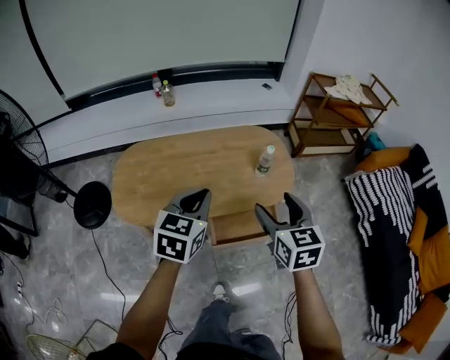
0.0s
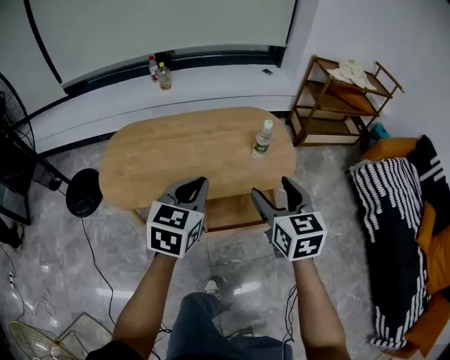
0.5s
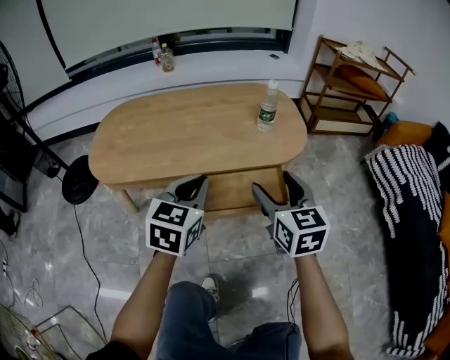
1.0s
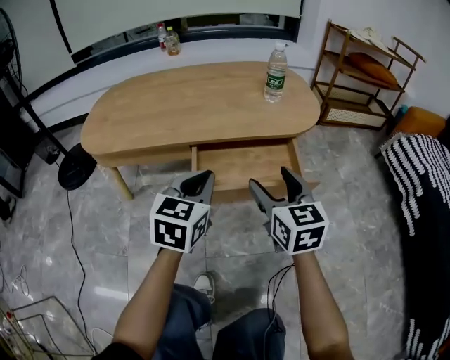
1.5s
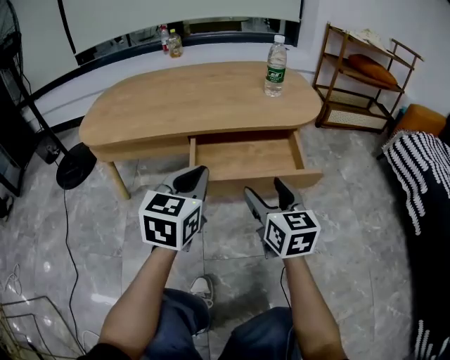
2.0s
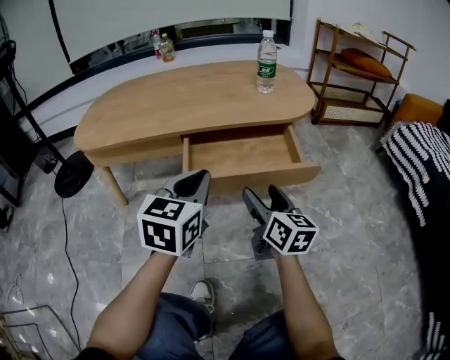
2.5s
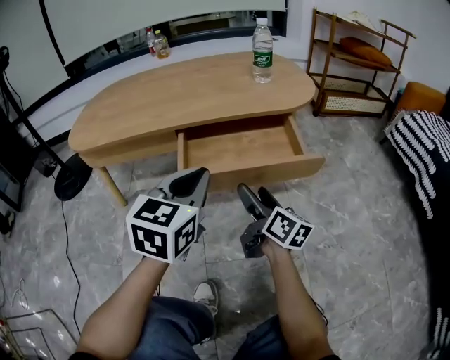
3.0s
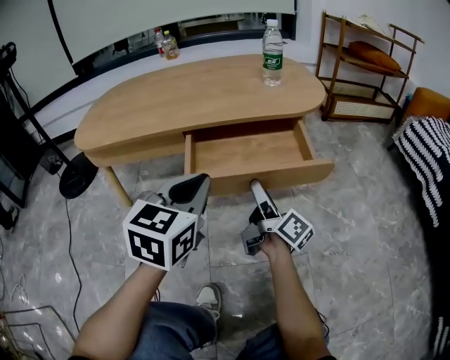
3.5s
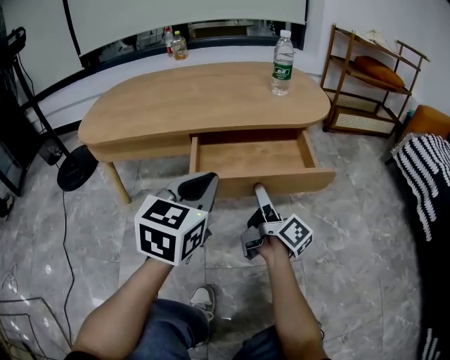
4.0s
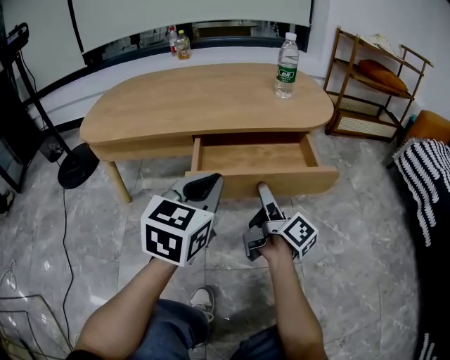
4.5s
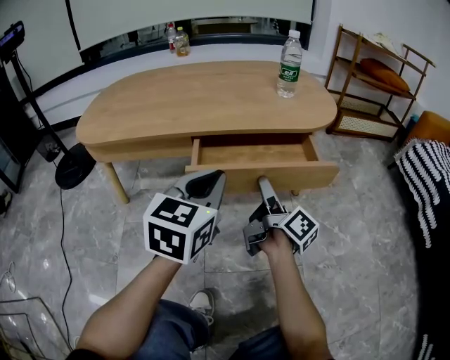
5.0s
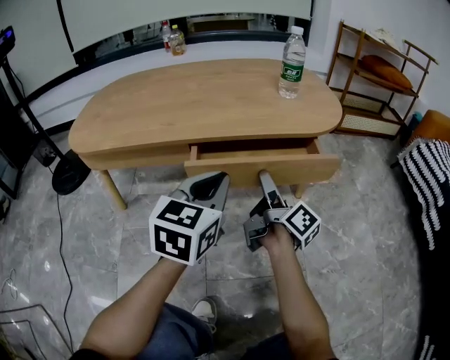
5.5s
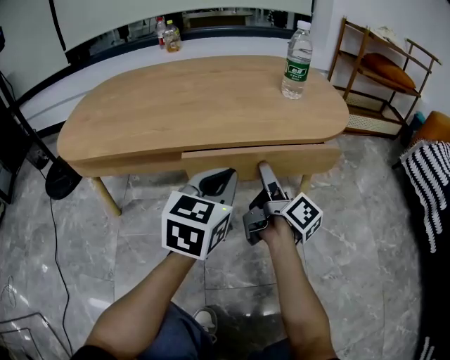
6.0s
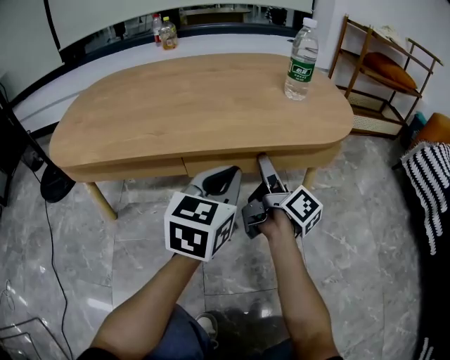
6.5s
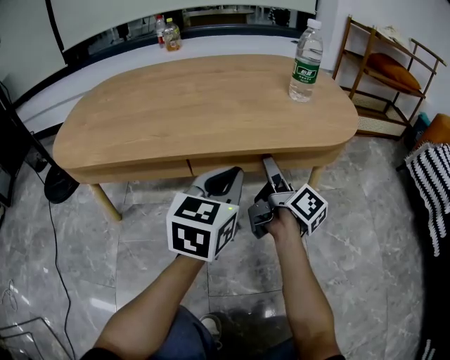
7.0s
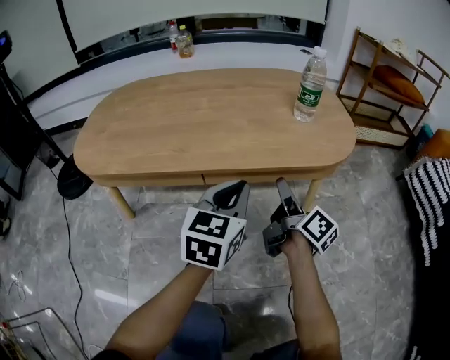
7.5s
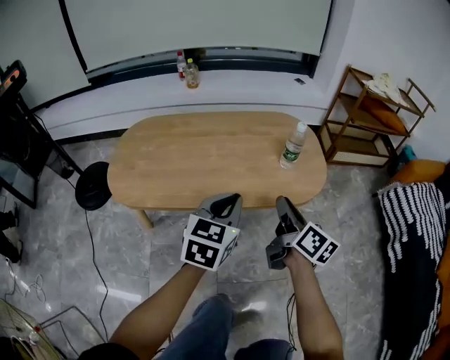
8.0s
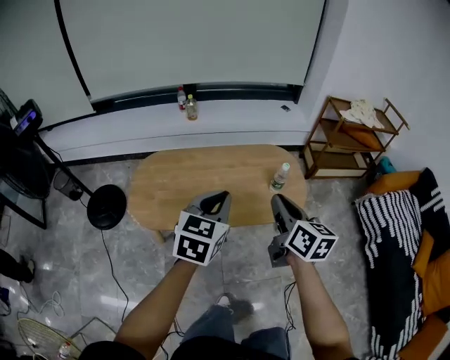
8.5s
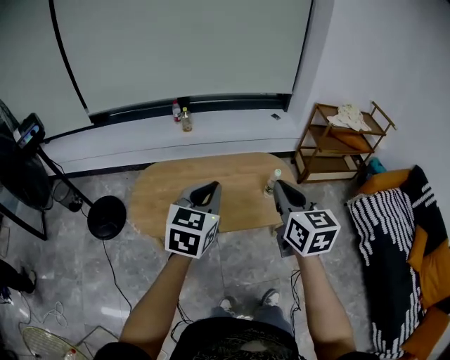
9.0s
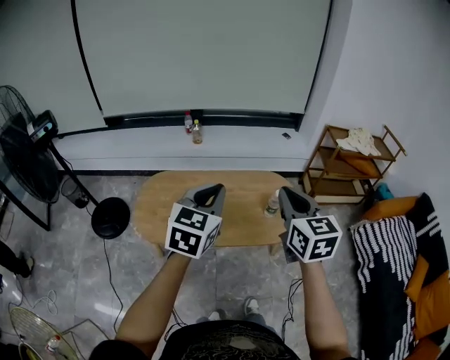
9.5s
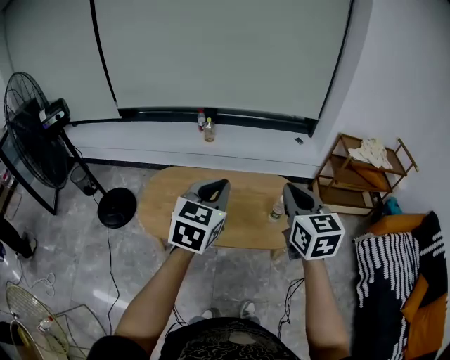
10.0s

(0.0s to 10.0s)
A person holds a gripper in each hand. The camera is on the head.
0.0s - 2.0s: The grippers both shift downward by approximately 40 cm.
2.0s - 4.0s: The right gripper shifts roughly 10 cm downward, and twists some 60 degrees clockwise, seen from behind.
4.0s - 6.0s: Both grippers move forward, approximately 15 cm.
6.0s - 8.0s: Both grippers travel together upward, roughly 25 cm. The right gripper swivels some 30 degrees, and closes its fingers.
8.0s - 10.0s: The two grippers go approximately 40 cm upward. The right gripper rotates around the line of its fingers by approximately 50 degrees, counterclockwise from behind.

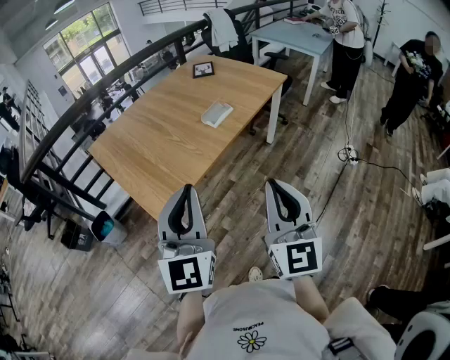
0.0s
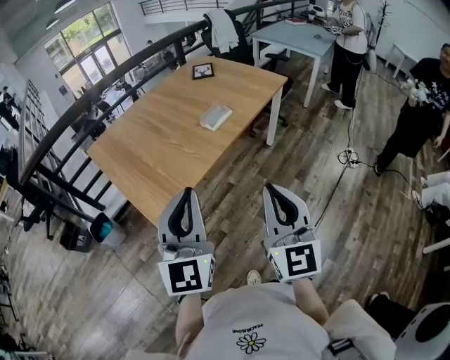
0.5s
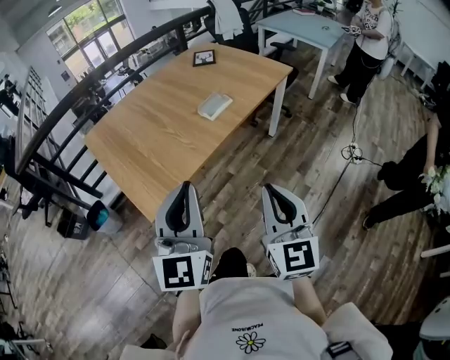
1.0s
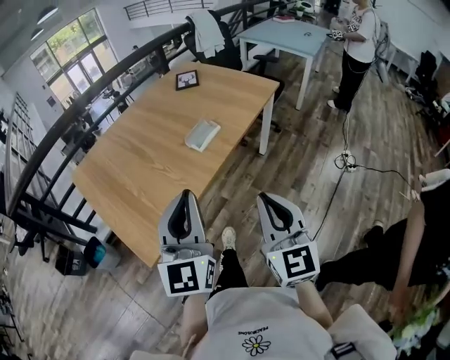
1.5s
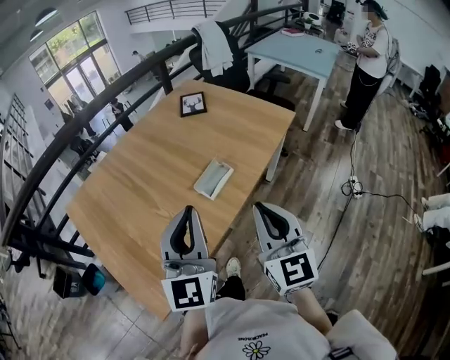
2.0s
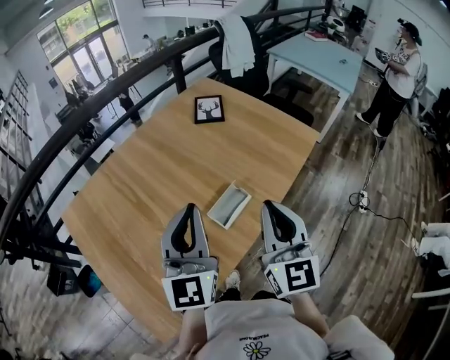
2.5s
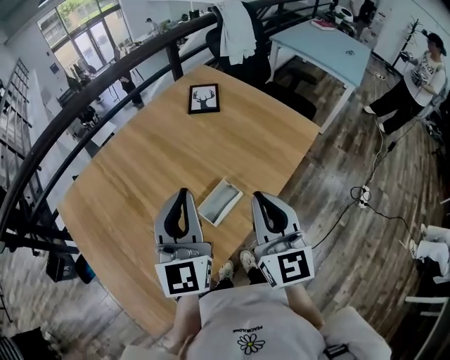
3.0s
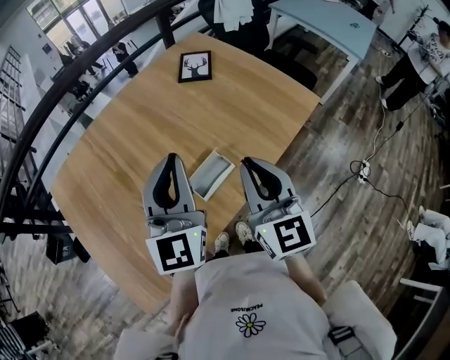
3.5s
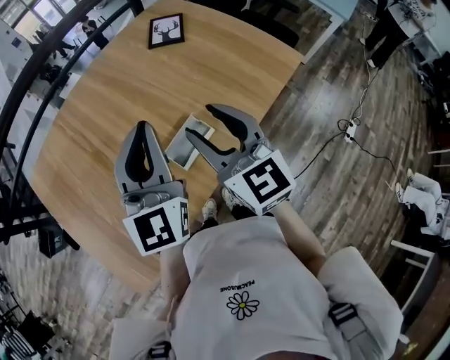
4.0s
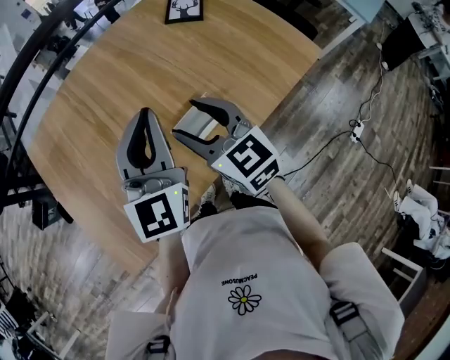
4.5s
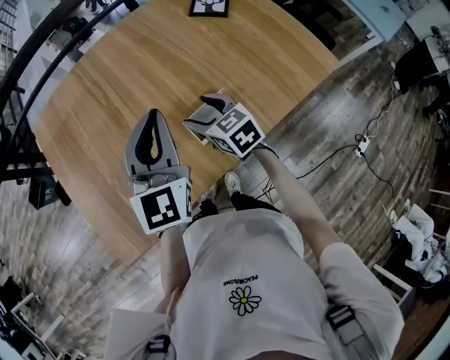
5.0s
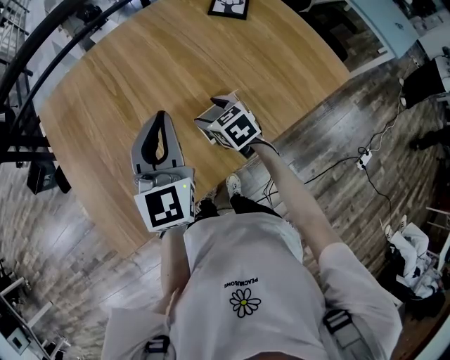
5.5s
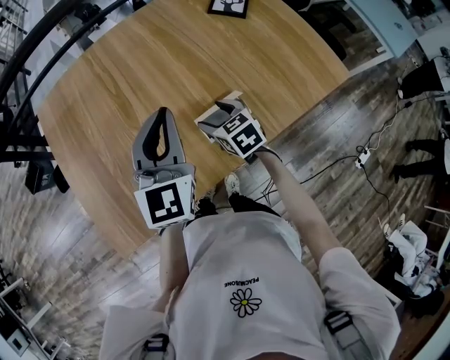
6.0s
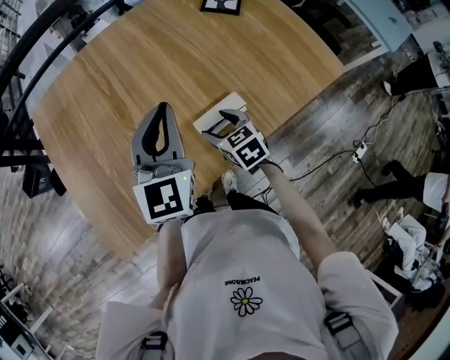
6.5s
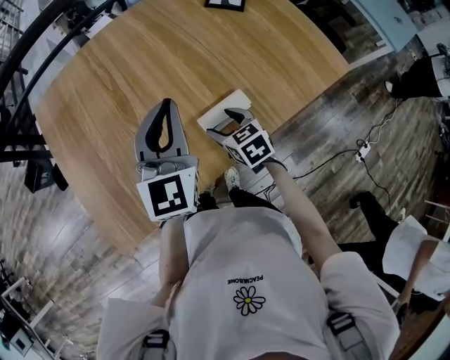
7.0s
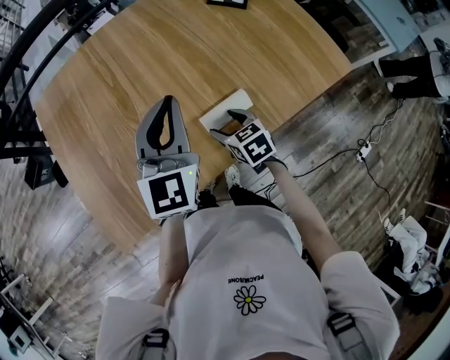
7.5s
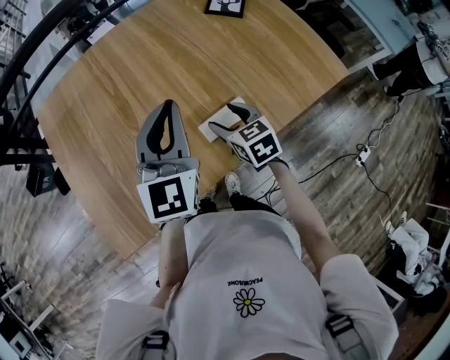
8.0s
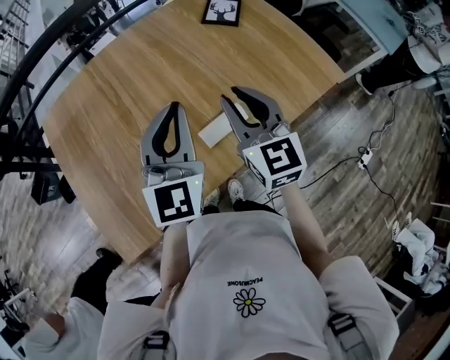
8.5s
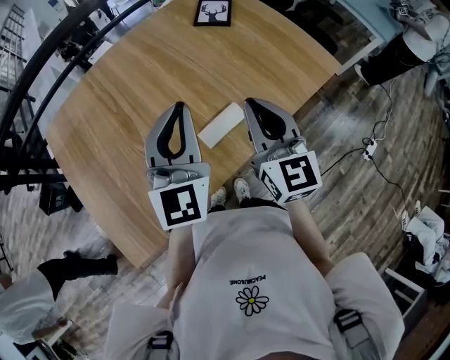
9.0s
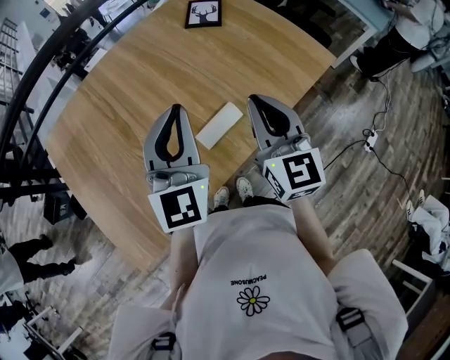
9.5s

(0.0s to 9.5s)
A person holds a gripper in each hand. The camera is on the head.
0.0s - 2.0s: Both grippers move forward, roughly 30 cm.
2.0s - 4.0s: The two grippers go about 20 cm forward. The right gripper swivels about 20 degrees, and opens.
4.0s - 5.5s: The left gripper shifts approximately 10 cm to the left and downward; the right gripper goes some 25 cm downward, and points its fingers about 40 degrees further downward.
5.5s - 7.5s: The right gripper moves backward, about 5 cm.
7.5s - 9.5s: The left gripper shifts approximately 5 cm upward and to the right. Meanwhile the right gripper moves upward, about 25 cm, tips its fingers upward by about 40 degrees, and closes its fingers.

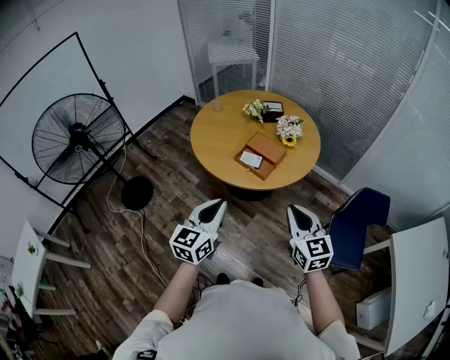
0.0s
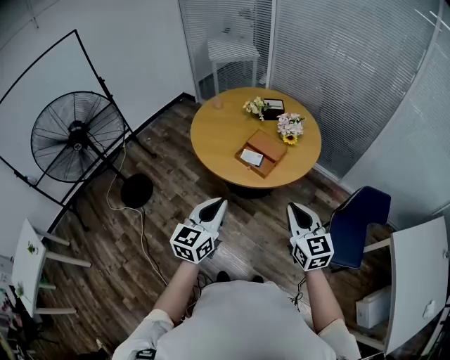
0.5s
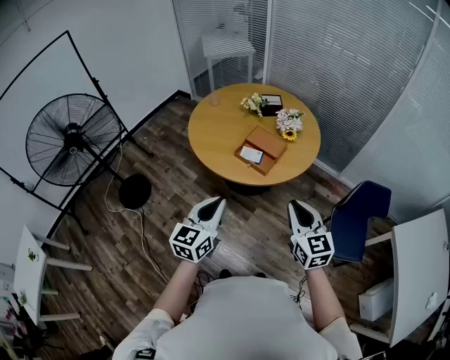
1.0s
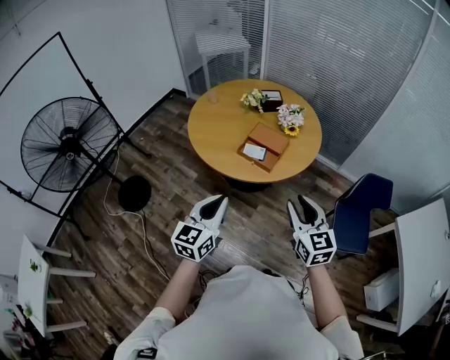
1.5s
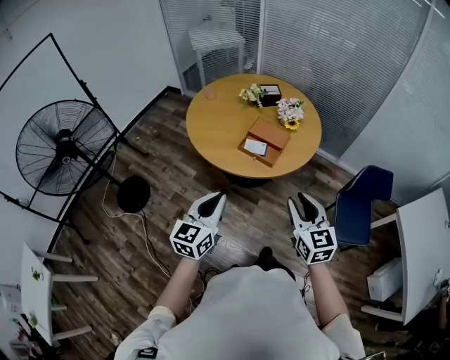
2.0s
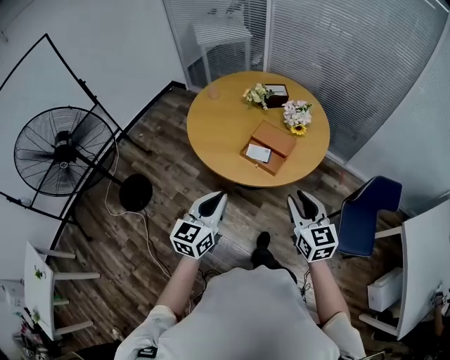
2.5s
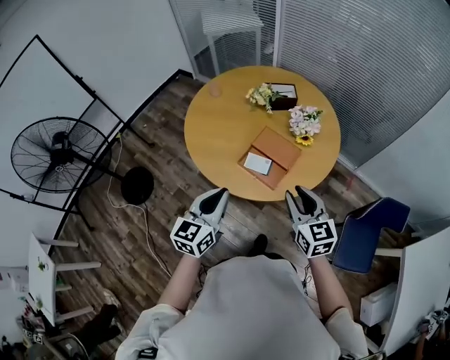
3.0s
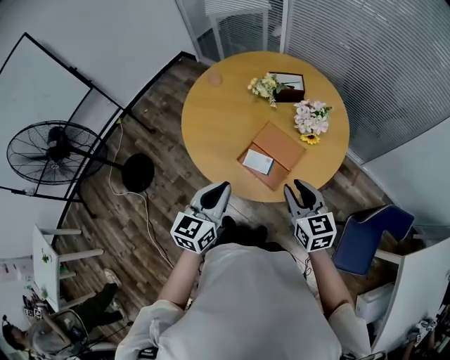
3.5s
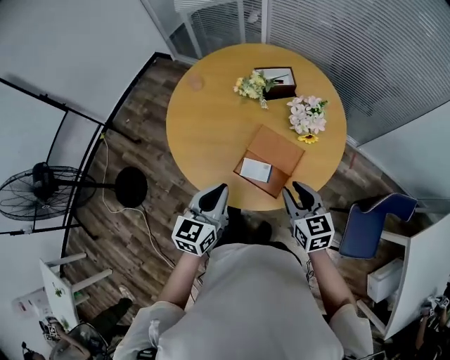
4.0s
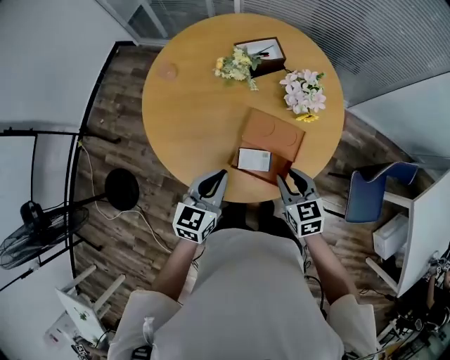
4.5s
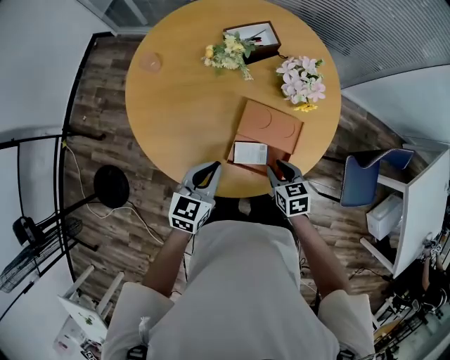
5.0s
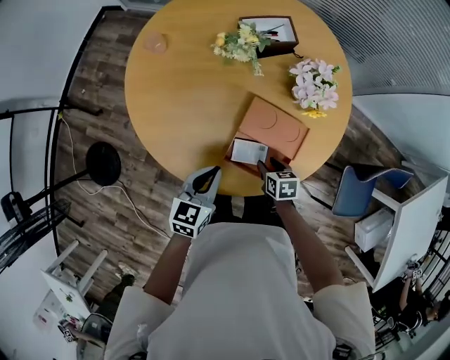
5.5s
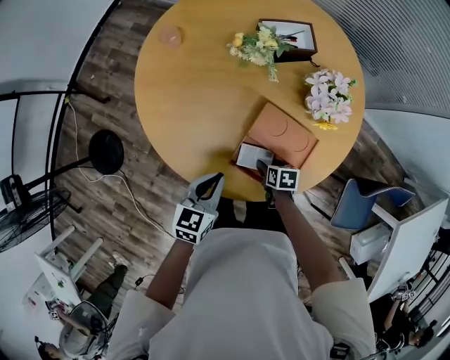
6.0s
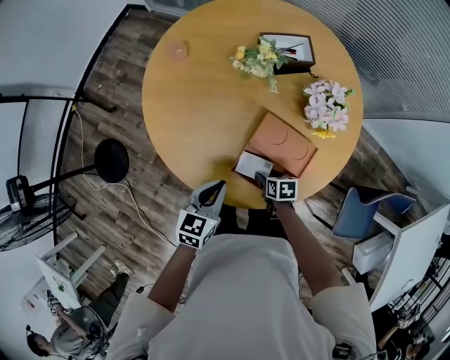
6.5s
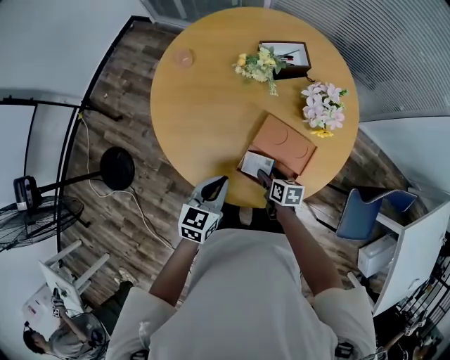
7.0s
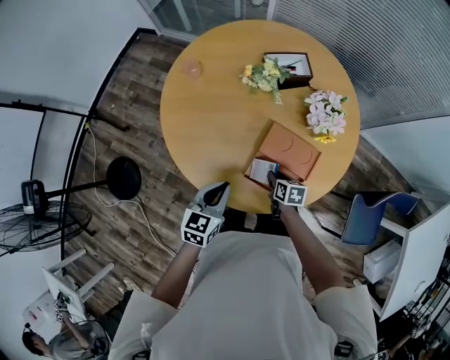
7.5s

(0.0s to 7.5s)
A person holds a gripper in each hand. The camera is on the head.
0.0s - 2.0s: The two grippers go some 10 cm to the left. The right gripper opens its fingers.
2.0s - 4.0s: The pair of grippers is taken forward, about 40 cm.
4.0s - 5.5s: The right gripper travels downward by approximately 30 cm, and angles its fingers downward, by some 30 degrees, while the left gripper heads downward and forward, covering about 20 cm.
5.5s - 7.5s: The left gripper ends up some 5 cm from where it was; the right gripper goes downward and returns, roughly 5 cm each way.
